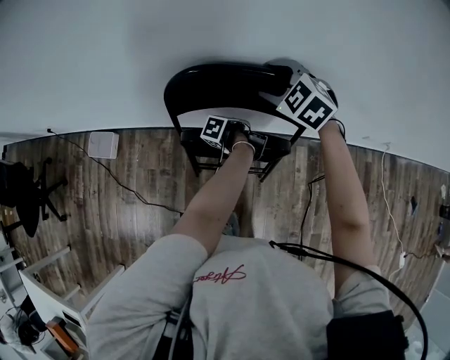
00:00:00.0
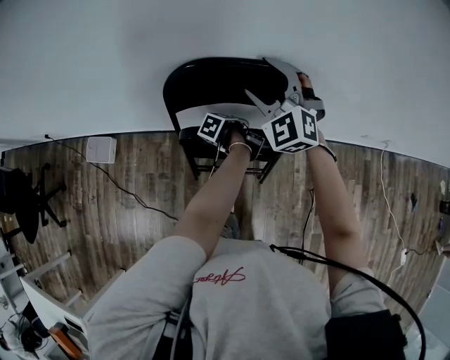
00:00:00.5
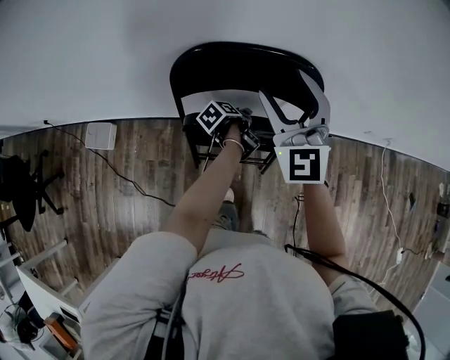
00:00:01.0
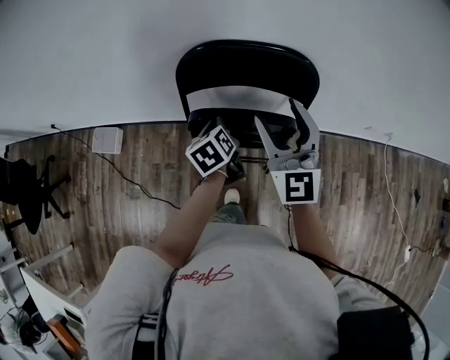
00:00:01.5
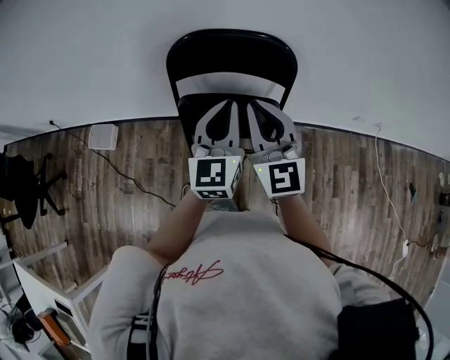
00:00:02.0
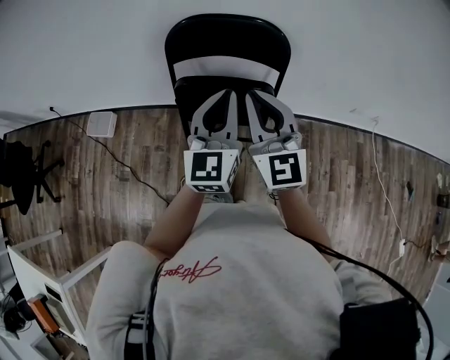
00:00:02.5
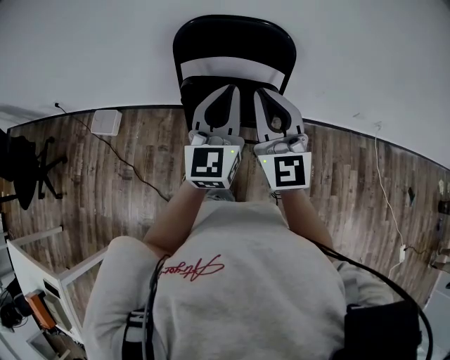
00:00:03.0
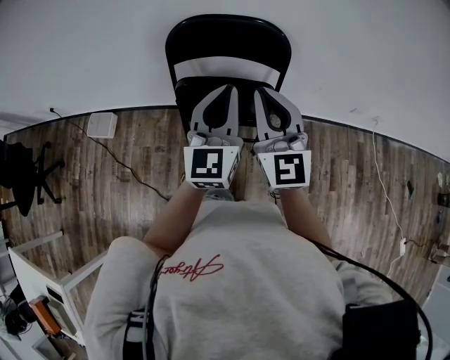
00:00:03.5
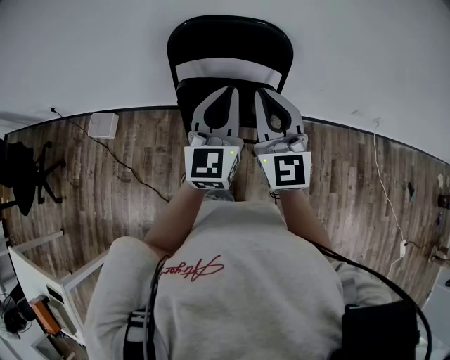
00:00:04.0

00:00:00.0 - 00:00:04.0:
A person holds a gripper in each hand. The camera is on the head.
00:00:00.0 - 00:00:02.0: The left gripper shifts about 35 cm upward, angles its fingers upward, by about 60 degrees, and closes up; the right gripper heads backward and upward, covering roughly 25 cm, tips its fingers upward by about 50 degrees, and closes.

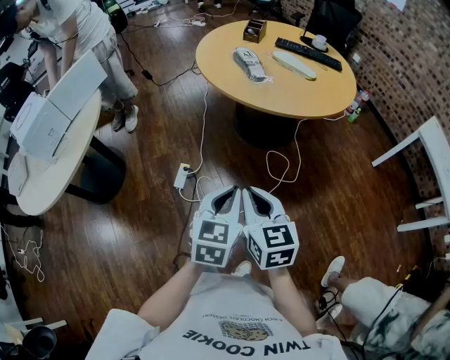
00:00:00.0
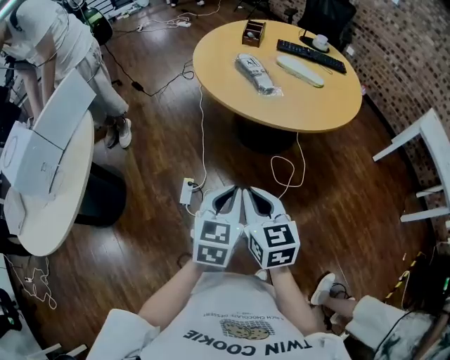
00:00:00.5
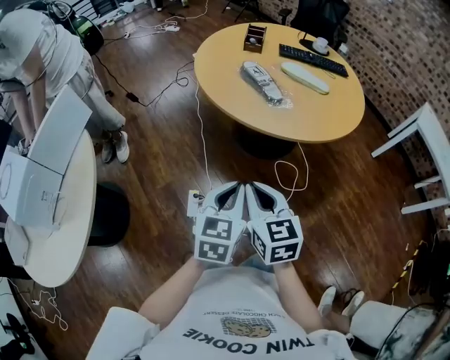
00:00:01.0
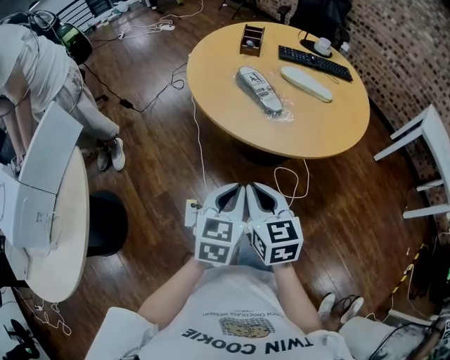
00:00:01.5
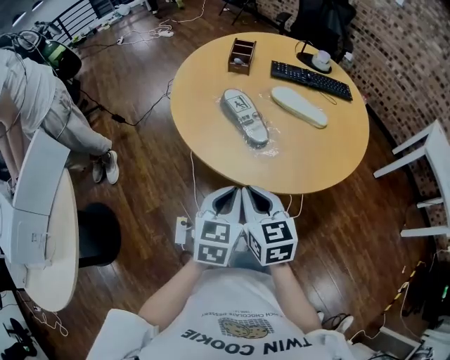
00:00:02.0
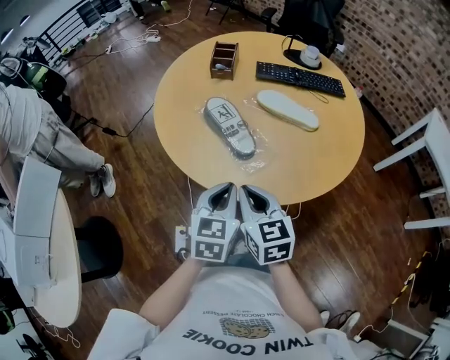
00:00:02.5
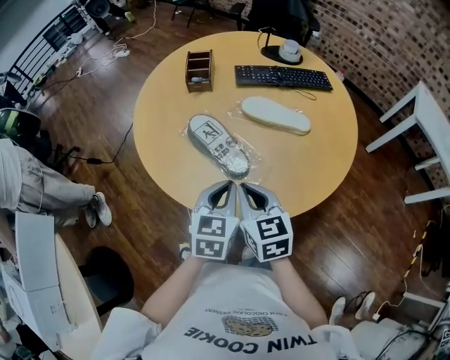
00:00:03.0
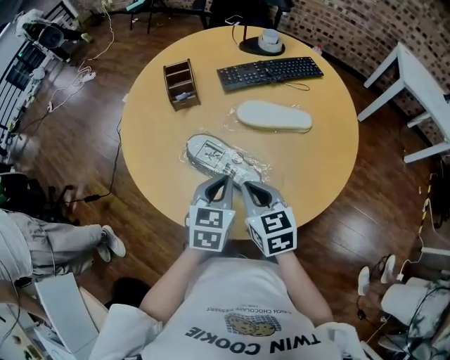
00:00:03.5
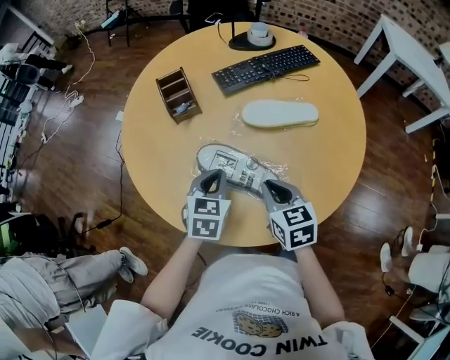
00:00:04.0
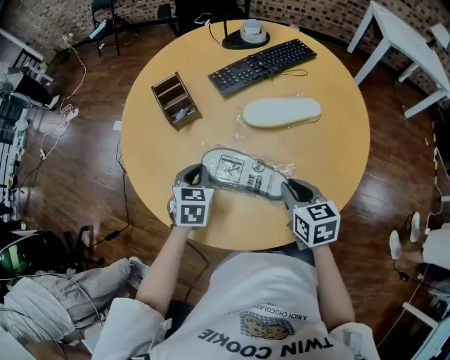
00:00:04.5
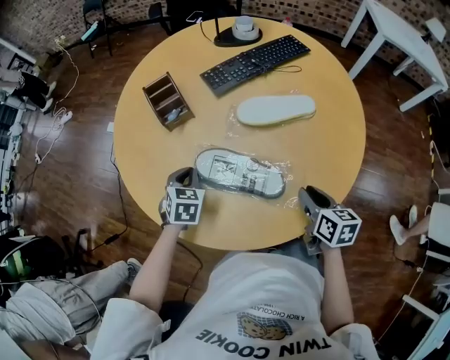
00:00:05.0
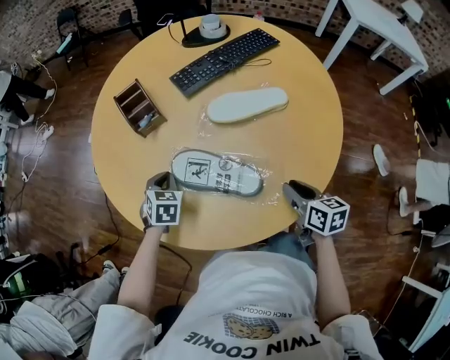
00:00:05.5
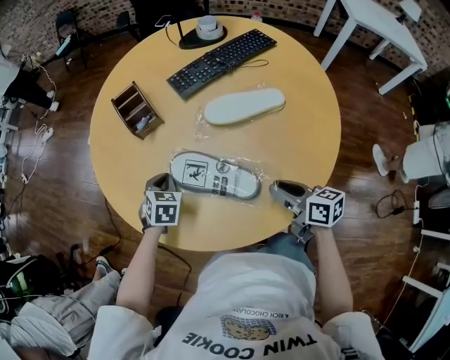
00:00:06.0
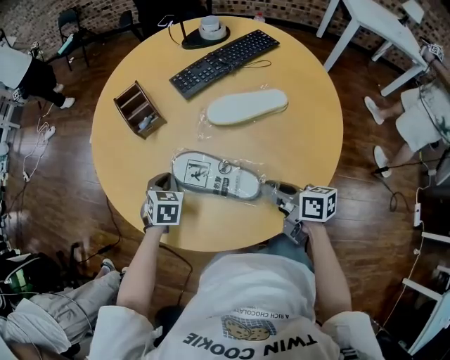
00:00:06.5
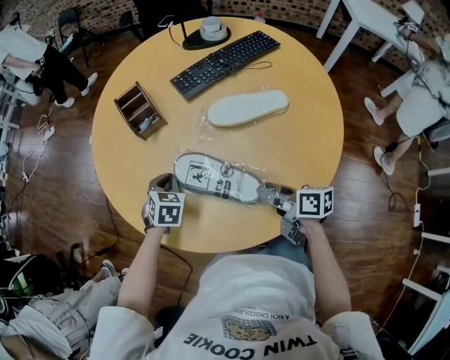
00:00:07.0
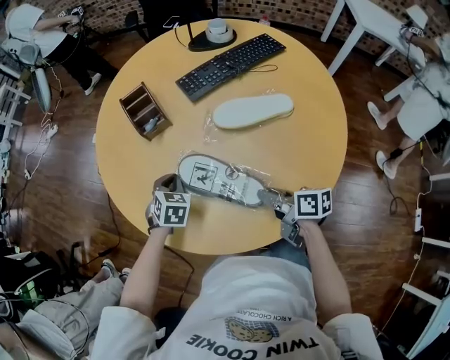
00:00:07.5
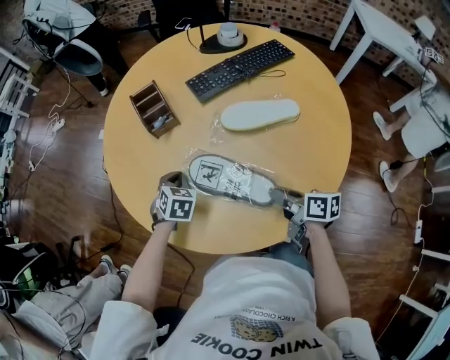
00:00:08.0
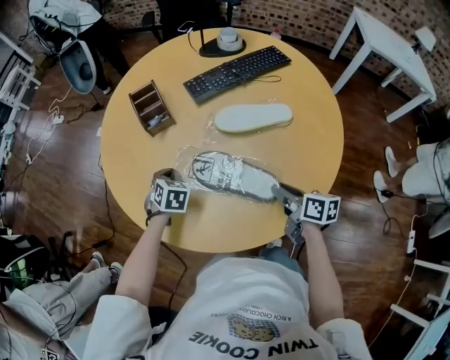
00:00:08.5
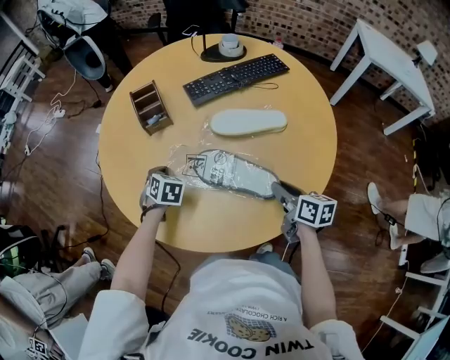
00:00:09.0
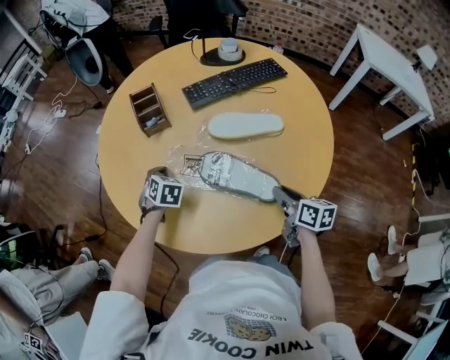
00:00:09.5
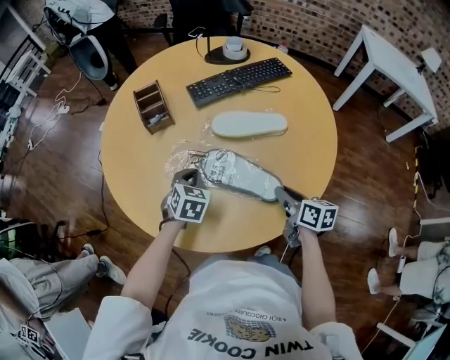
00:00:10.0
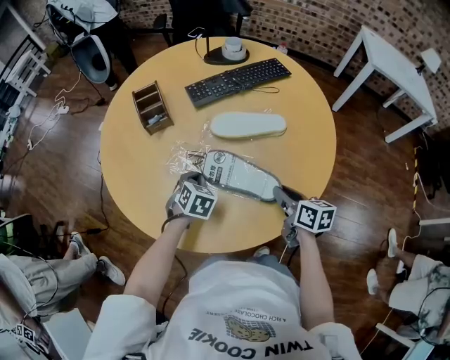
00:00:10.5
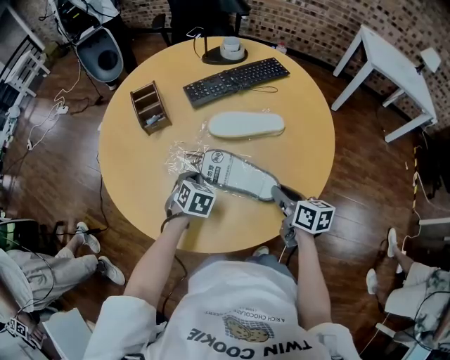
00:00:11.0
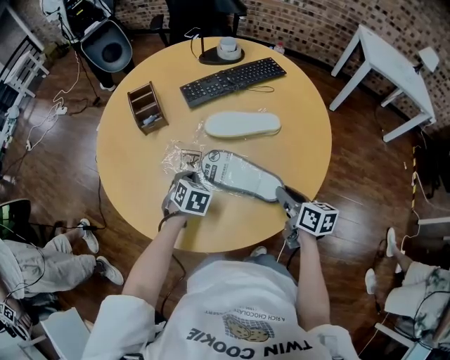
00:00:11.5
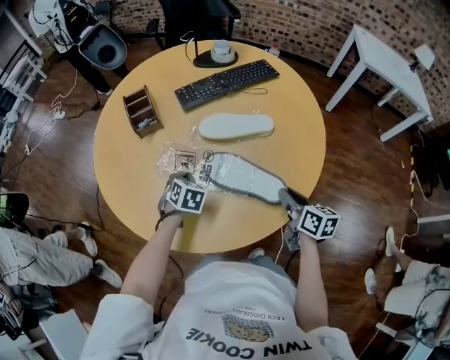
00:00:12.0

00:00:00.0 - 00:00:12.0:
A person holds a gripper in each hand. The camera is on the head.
00:00:00.0 - 00:00:02.0: Both grippers are carried forward, roughly 40 cm.
00:00:02.0 - 00:00:04.0: The right gripper changes place by some 25 cm, and rotates about 30 degrees; the left gripper changes place by roughly 35 cm, and changes its angle by roughly 30 degrees.
00:00:04.0 - 00:00:06.0: The left gripper heads downward, to the left and forward, covering some 15 cm, and changes its angle by roughly 20 degrees, while the right gripper moves to the right, approximately 10 cm, and changes its angle by roughly 30 degrees.
00:00:06.0 - 00:00:08.0: The right gripper opens, then closes again.
00:00:08.0 - 00:00:10.0: The left gripper is displaced to the right and backward by about 10 cm. Meanwhile the right gripper moves to the right, about 10 cm.
00:00:10.0 - 00:00:12.0: The right gripper travels to the right by some 5 cm.

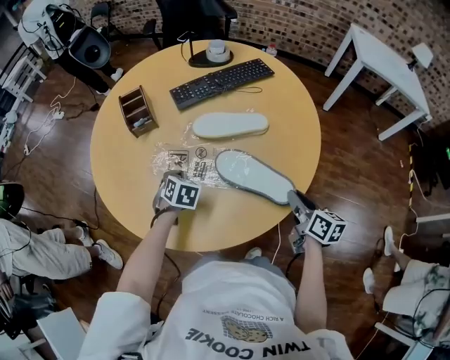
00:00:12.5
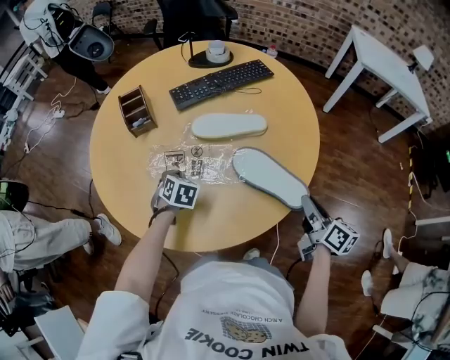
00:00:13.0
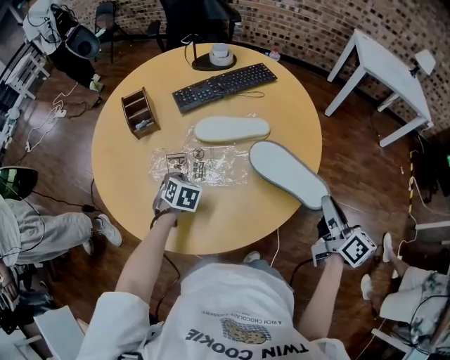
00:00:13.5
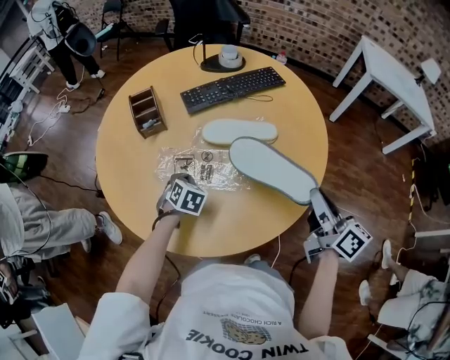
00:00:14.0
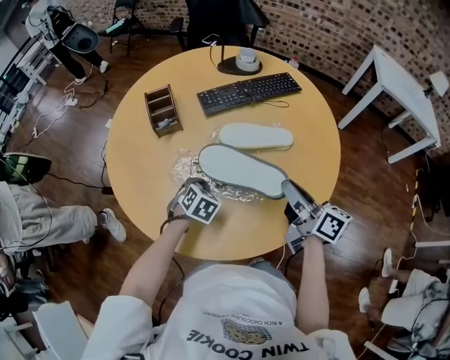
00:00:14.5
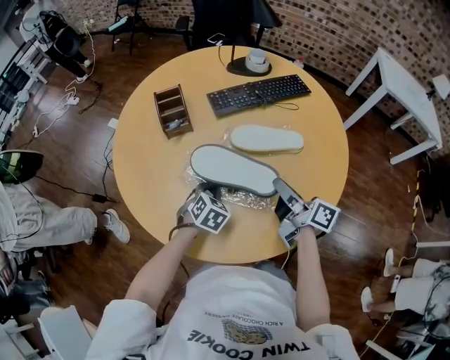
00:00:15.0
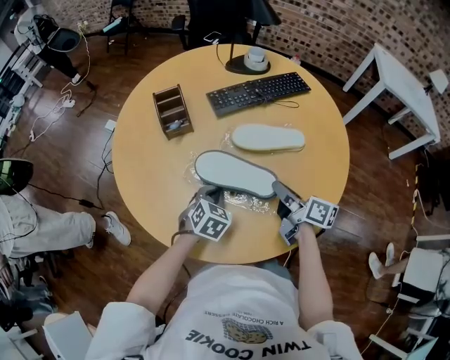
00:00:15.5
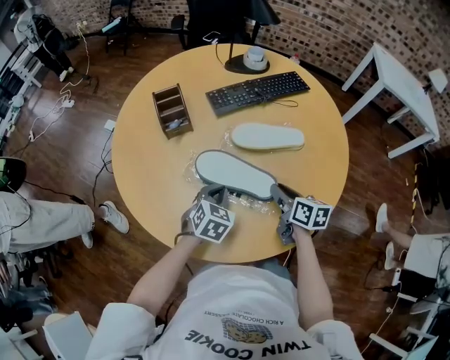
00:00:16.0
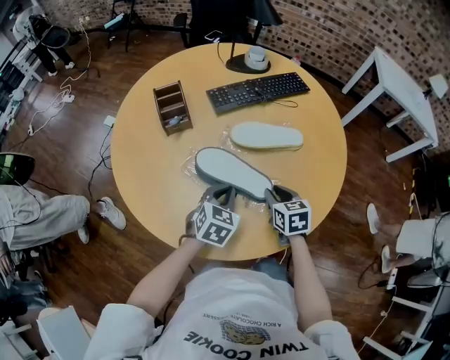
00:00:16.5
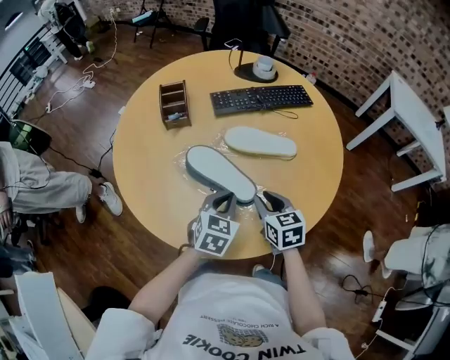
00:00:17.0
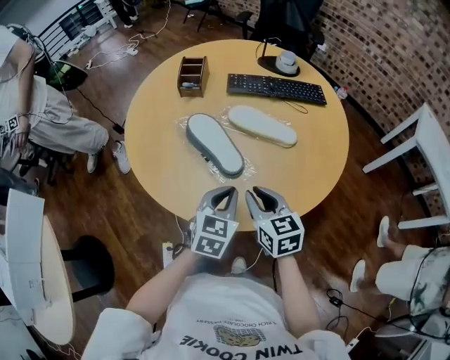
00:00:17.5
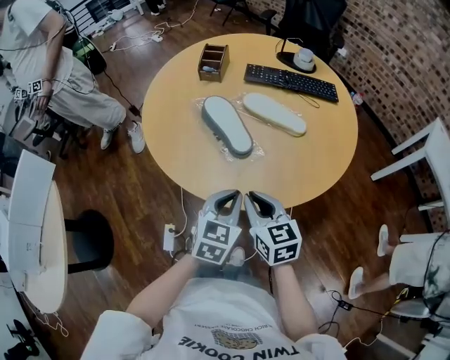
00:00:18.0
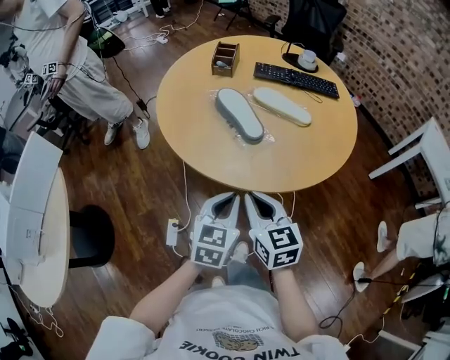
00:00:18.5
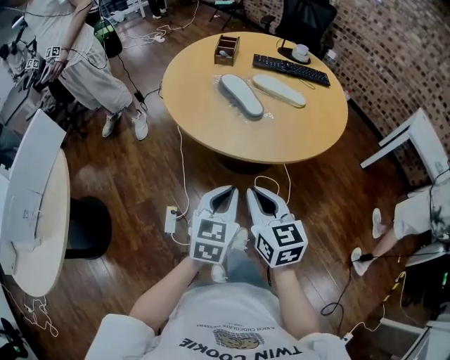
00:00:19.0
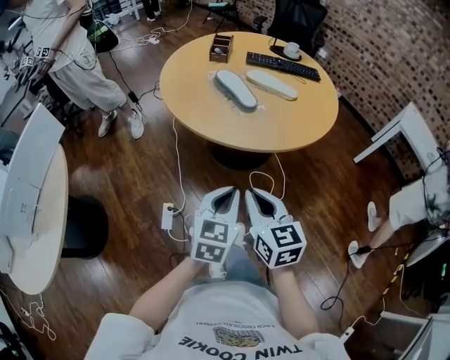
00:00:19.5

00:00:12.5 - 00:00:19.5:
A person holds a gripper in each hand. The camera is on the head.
00:00:12.5 - 00:00:14.5: The right gripper shifts about 15 cm upward, to the left and forward, and changes its angle by about 30 degrees.
00:00:14.5 - 00:00:16.0: The right gripper is displaced downward by roughly 15 cm, and changes its angle by approximately 30 degrees.
00:00:16.0 - 00:00:17.5: The right gripper shifts by roughly 10 cm, and swivels roughly 50 degrees. The left gripper ends up about 20 cm from where it was, and turns by about 30 degrees.
00:00:17.5 - 00:00:19.5: The two grippers go roughly 35 cm backward.

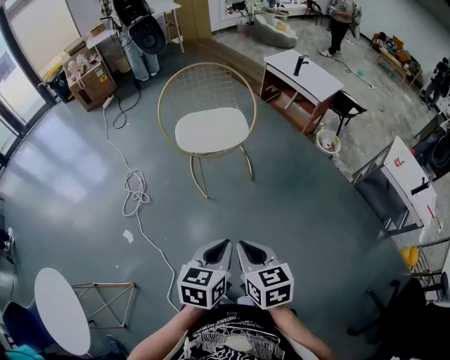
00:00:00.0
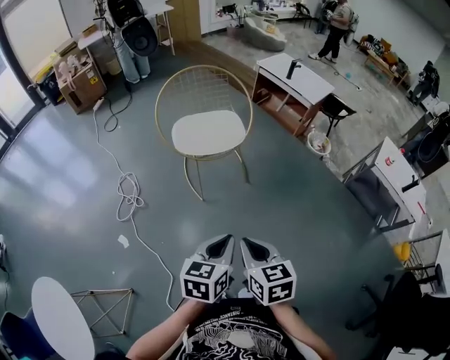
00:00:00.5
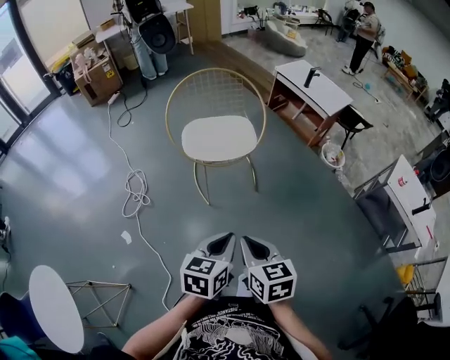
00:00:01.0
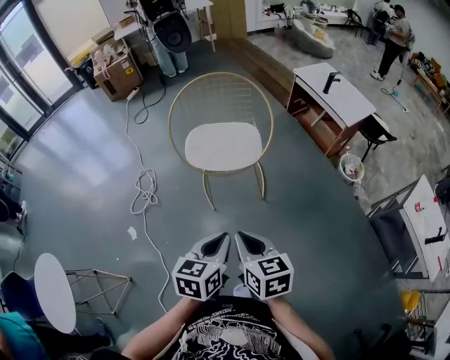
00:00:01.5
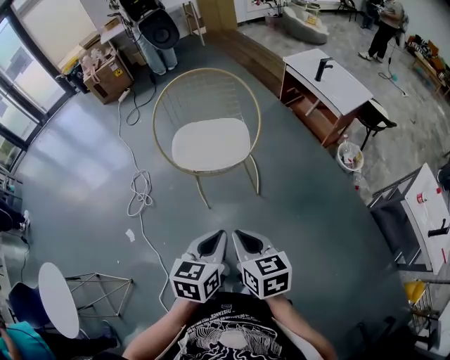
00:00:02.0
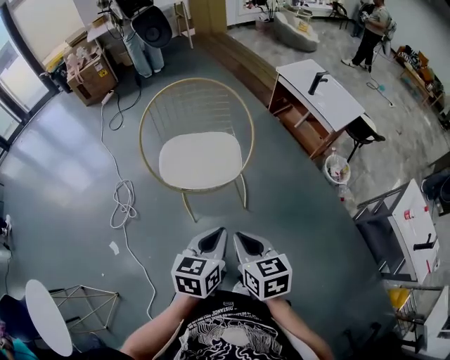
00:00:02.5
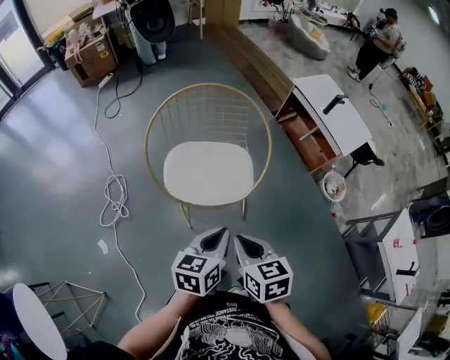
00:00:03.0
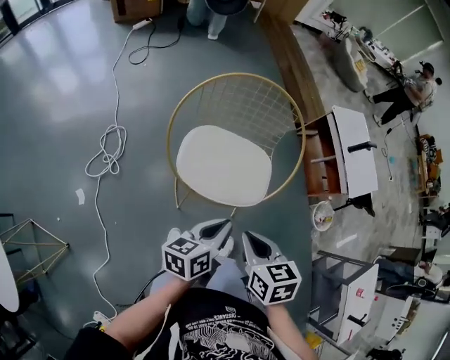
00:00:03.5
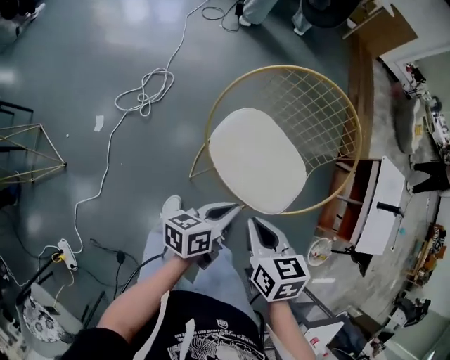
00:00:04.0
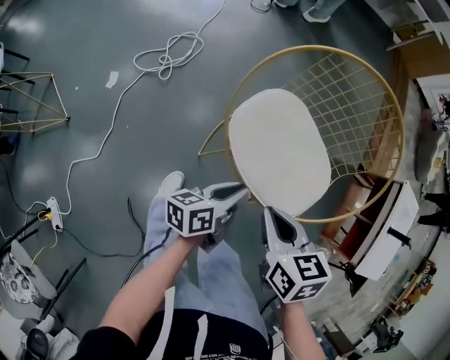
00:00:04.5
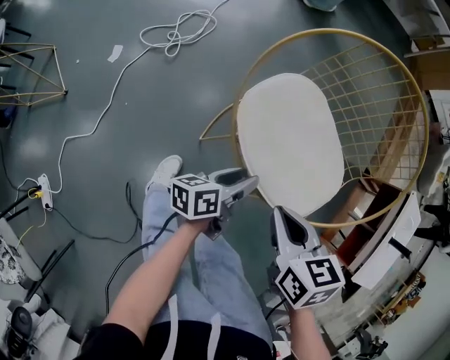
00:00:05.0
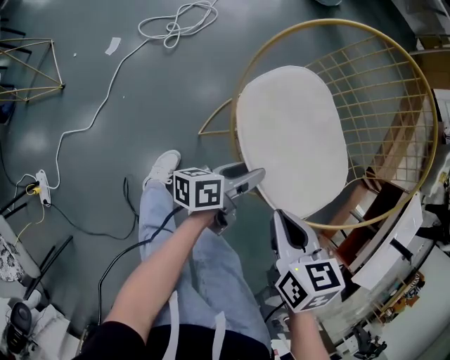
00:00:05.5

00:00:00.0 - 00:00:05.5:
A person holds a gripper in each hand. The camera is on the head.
00:00:00.0 - 00:00:02.0: The two grippers go about 20 cm forward and to the right.
00:00:02.0 - 00:00:03.5: The two grippers go approximately 25 cm forward. The right gripper swivels some 20 degrees, while the left gripper changes its angle by roughly 40 degrees.
00:00:03.5 - 00:00:05.5: The left gripper travels downward by approximately 25 cm, rotates about 50 degrees, and opens its fingers; the right gripper heads downward, covering about 15 cm, and swivels approximately 40 degrees.
